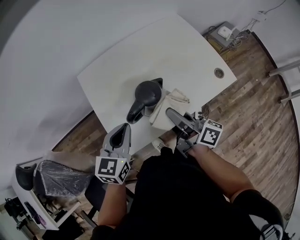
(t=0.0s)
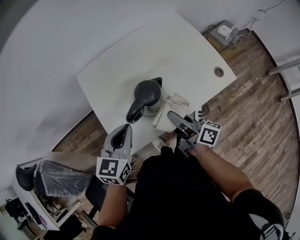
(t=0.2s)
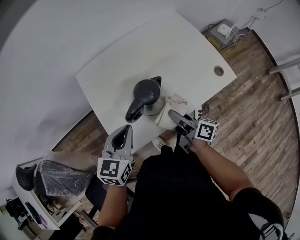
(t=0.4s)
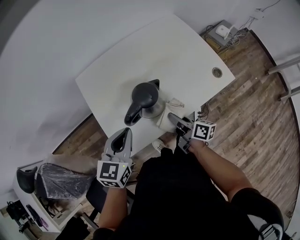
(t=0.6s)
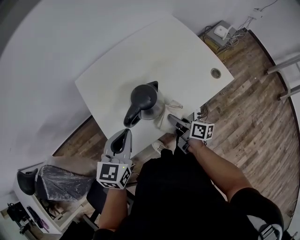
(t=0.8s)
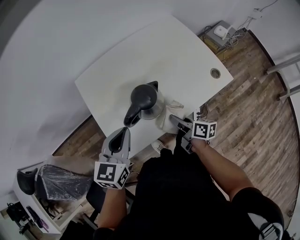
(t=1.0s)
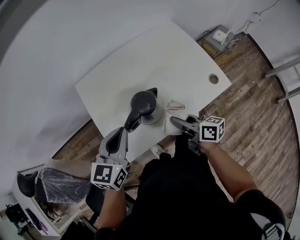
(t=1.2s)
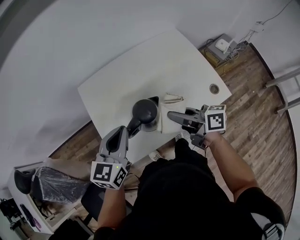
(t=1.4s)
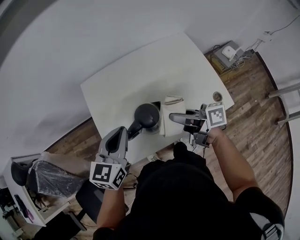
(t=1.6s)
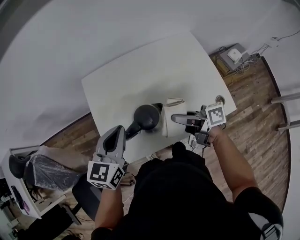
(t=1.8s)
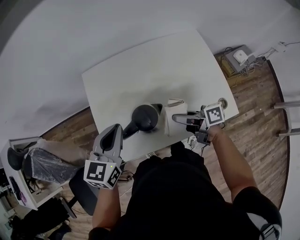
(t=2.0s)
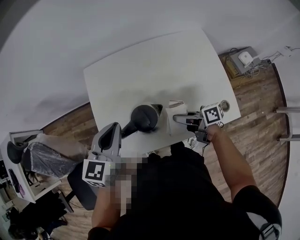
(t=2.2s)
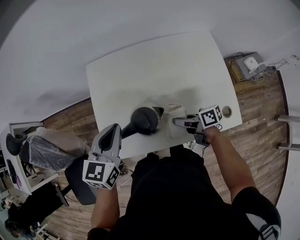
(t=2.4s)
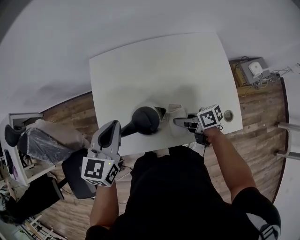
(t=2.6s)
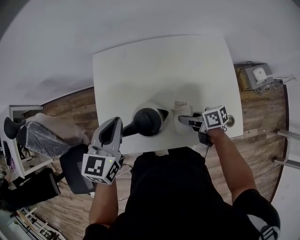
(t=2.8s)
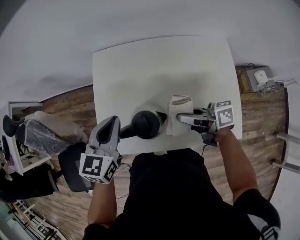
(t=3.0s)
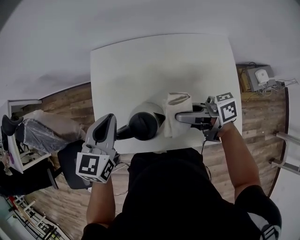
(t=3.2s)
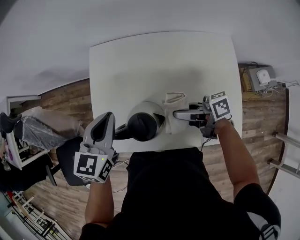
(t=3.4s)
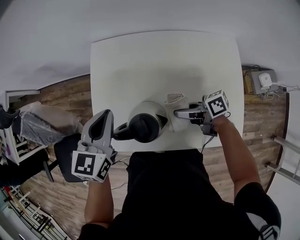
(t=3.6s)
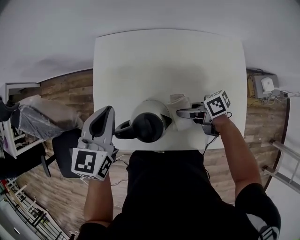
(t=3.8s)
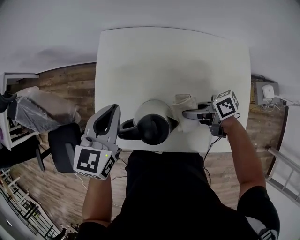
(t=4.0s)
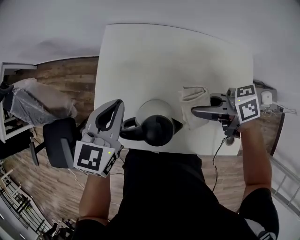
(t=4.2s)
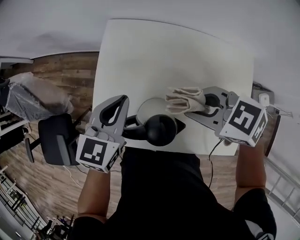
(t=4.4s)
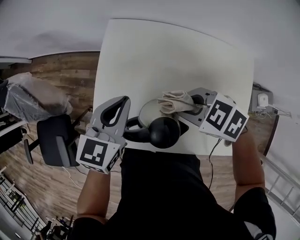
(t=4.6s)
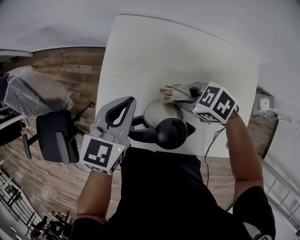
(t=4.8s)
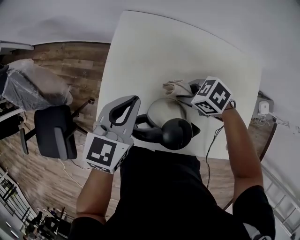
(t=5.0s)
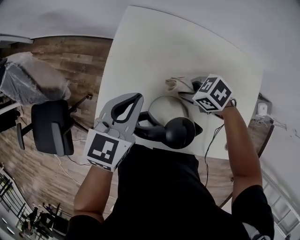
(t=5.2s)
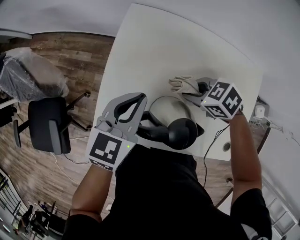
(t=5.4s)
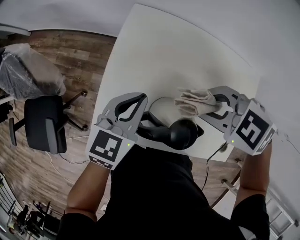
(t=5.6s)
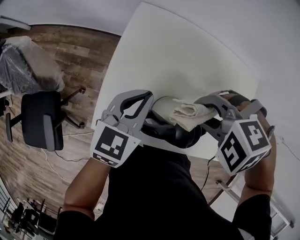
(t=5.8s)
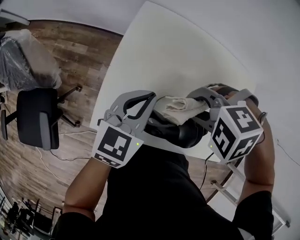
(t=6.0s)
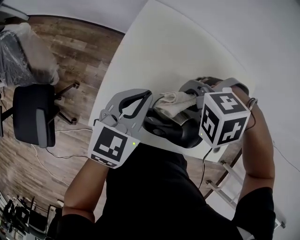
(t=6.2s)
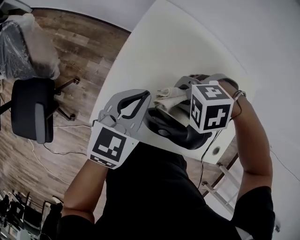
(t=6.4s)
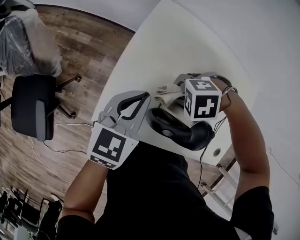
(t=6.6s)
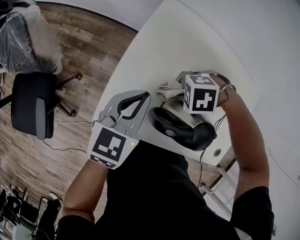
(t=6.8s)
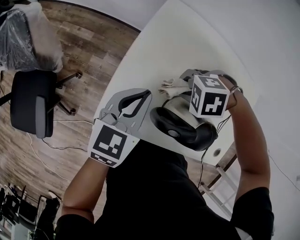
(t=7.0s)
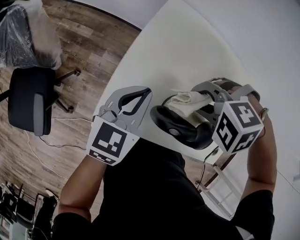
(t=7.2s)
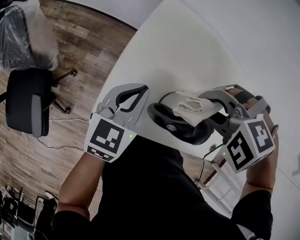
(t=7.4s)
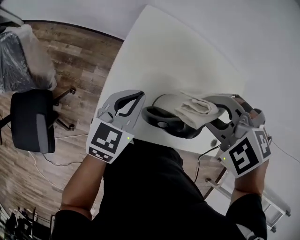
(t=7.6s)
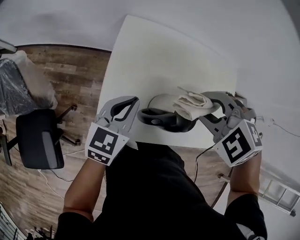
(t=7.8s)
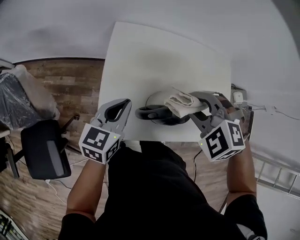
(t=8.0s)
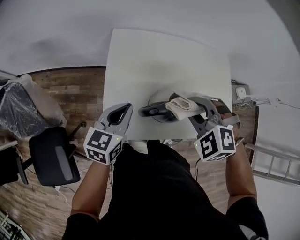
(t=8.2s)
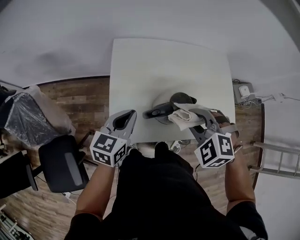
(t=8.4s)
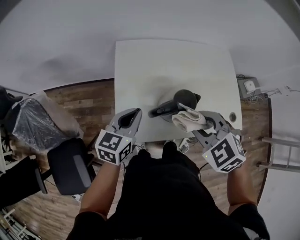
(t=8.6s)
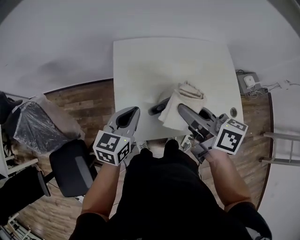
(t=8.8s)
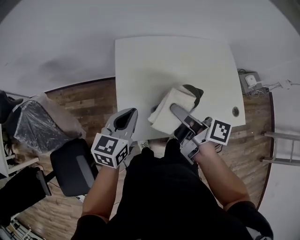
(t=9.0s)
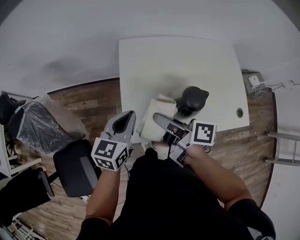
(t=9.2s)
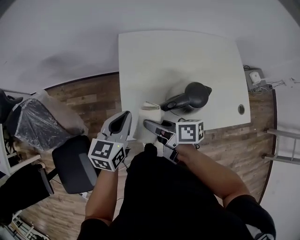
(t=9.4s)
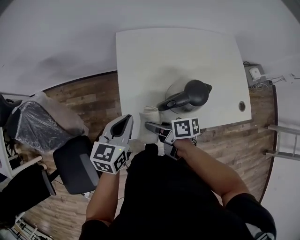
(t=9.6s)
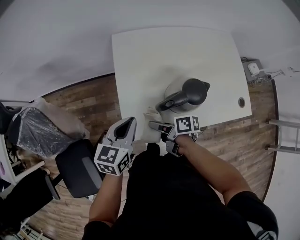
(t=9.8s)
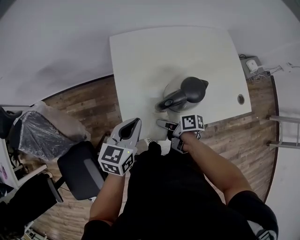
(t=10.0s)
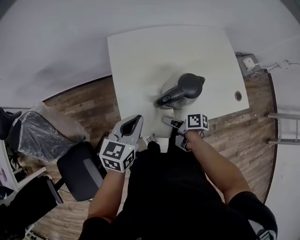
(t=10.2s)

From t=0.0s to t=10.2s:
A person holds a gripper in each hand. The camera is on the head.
From t=0.0s to t=1.4s: The left gripper shifts by about 5 cm. The right gripper goes downward and returns, roughly 15 cm each way, and swivels some 30 degrees.
From t=1.4s to t=3.0s: The right gripper swivels approximately 40 degrees, while the left gripper shifts by approximately 5 cm, and changes its angle by some 20 degrees.
From t=3.0s to t=4.4s: The left gripper moves approximately 5 cm, while the right gripper travels forward by some 10 cm, reaches roughly 10 cm downward, then returns, and points its fingers about 40 degrees further downward.
From t=4.4s to t=5.8s: The right gripper travels downward and back again, some 20 cm each way, and points its fingers roughly 30 degrees further downward.
From t=5.8s to t=7.2s: The right gripper travels downward and back again, some 15 cm each way; the left gripper shifts by approximately 10 cm.
From t=7.2s to t=8.8s: The right gripper heads upward, covering approximately 15 cm, and angles its fingers upward, by approximately 60 degrees. The left gripper moves upward, roughly 5 cm.
From t=8.8s to t=10.2s: The left gripper shifts by some 5 cm. Meanwhile the right gripper moves downward, some 30 cm, and rolls clockwise, seen from behind, by about 40 degrees.

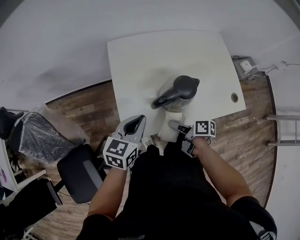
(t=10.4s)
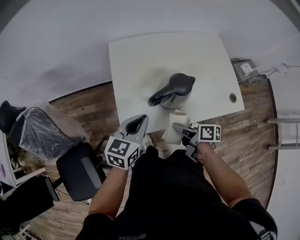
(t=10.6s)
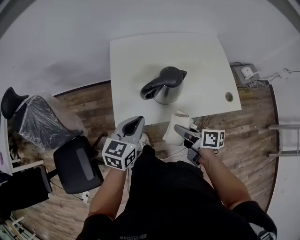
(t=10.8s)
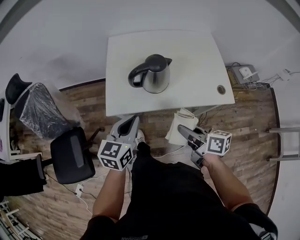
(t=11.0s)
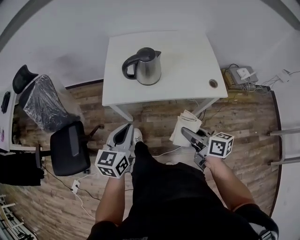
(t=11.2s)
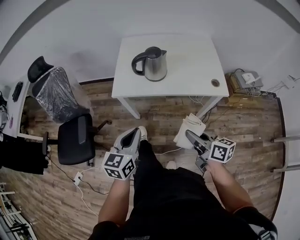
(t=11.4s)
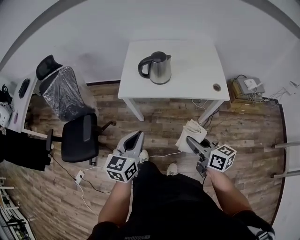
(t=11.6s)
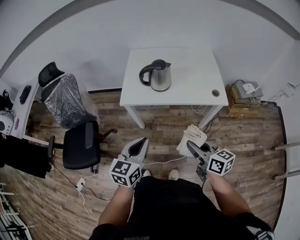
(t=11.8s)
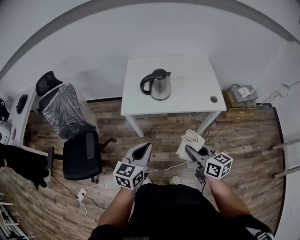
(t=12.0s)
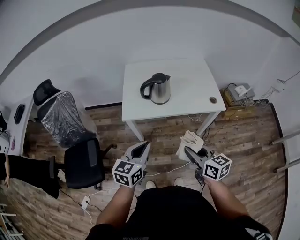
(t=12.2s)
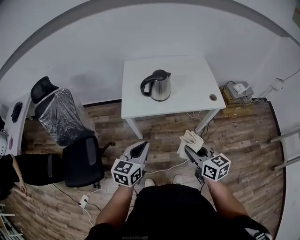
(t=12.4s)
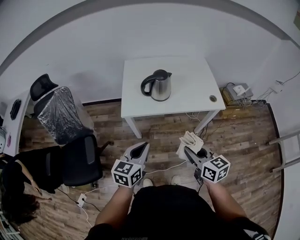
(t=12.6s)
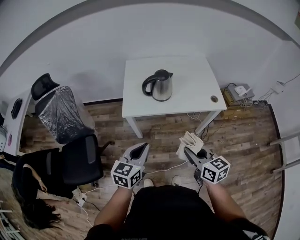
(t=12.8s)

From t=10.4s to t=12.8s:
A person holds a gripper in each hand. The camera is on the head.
From t=10.4s to t=11.6s: The right gripper shifts some 40 cm backward, upward and to the right, and twists approximately 50 degrees counterclockwise, seen from behind. The left gripper shifts some 35 cm backward, and rotates about 20 degrees.
From t=11.6s to t=12.8s: The left gripper travels to the left by about 5 cm; the right gripper goes about 10 cm to the left.

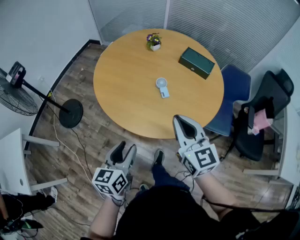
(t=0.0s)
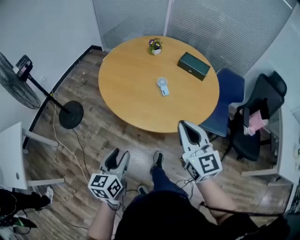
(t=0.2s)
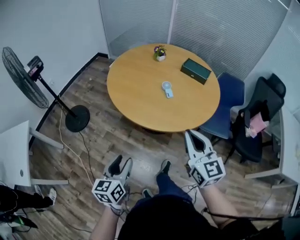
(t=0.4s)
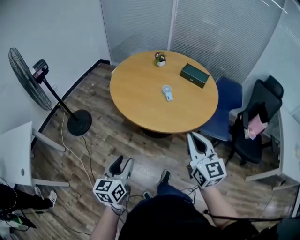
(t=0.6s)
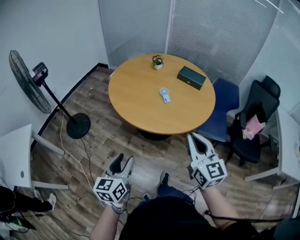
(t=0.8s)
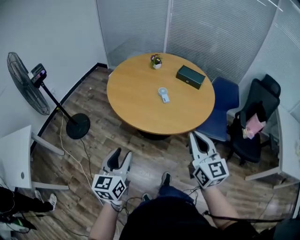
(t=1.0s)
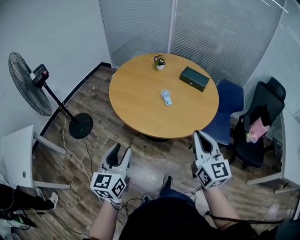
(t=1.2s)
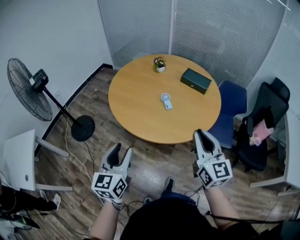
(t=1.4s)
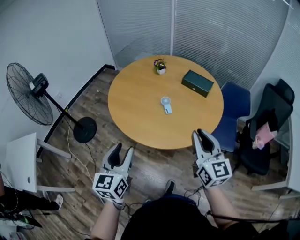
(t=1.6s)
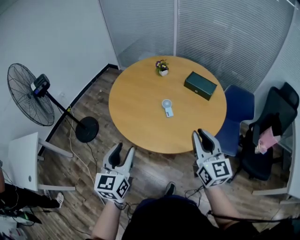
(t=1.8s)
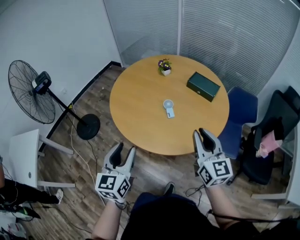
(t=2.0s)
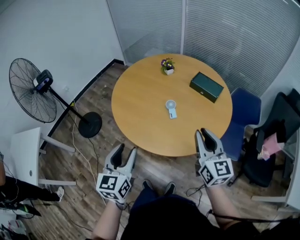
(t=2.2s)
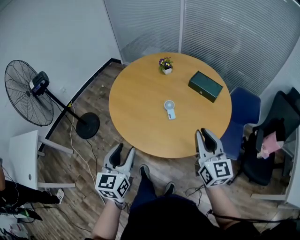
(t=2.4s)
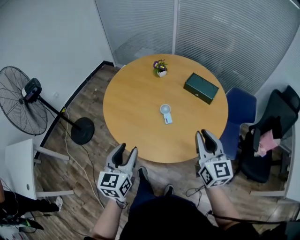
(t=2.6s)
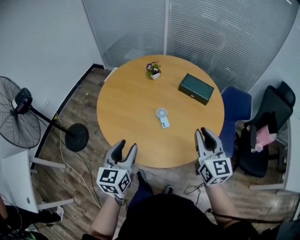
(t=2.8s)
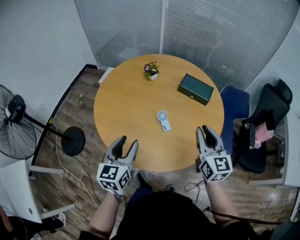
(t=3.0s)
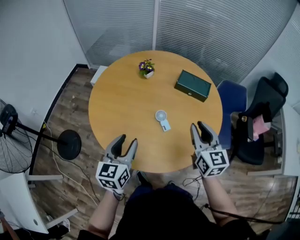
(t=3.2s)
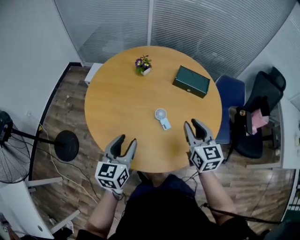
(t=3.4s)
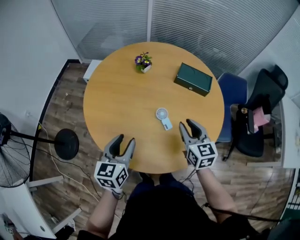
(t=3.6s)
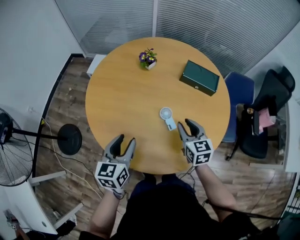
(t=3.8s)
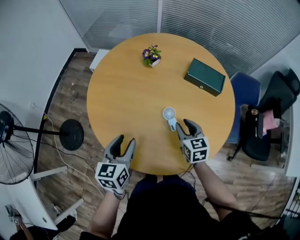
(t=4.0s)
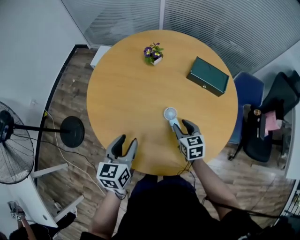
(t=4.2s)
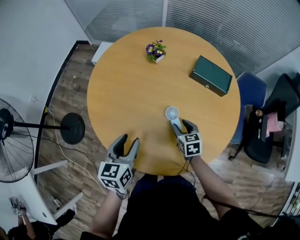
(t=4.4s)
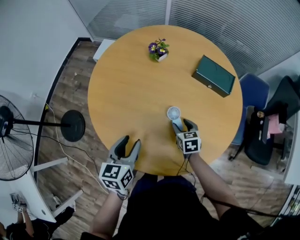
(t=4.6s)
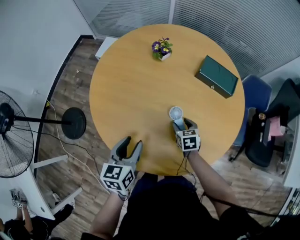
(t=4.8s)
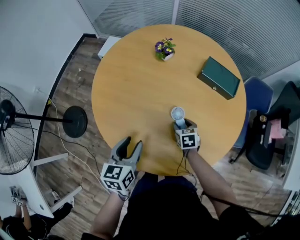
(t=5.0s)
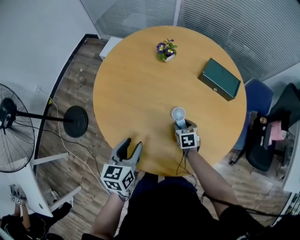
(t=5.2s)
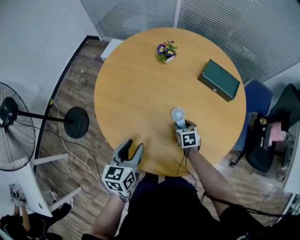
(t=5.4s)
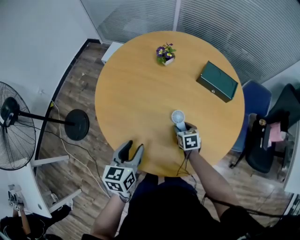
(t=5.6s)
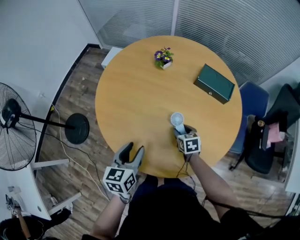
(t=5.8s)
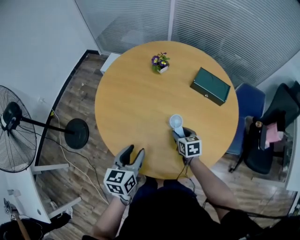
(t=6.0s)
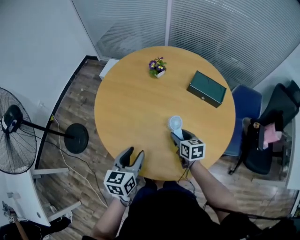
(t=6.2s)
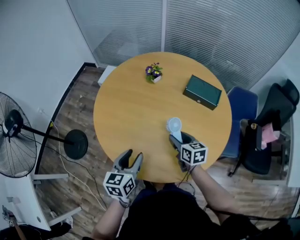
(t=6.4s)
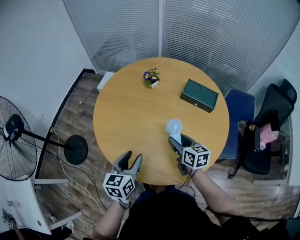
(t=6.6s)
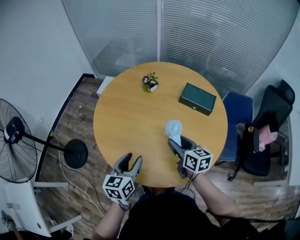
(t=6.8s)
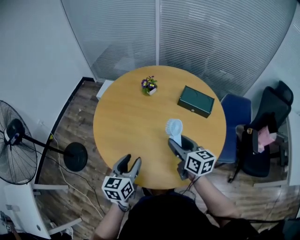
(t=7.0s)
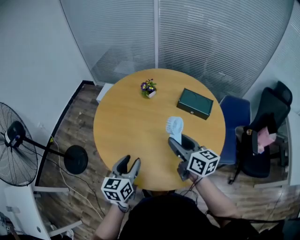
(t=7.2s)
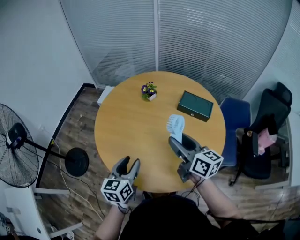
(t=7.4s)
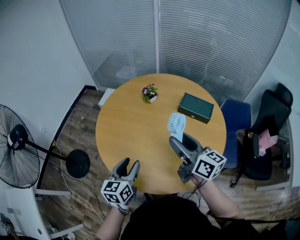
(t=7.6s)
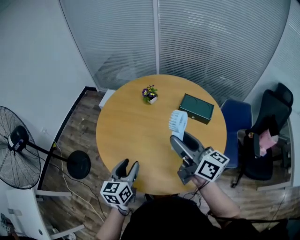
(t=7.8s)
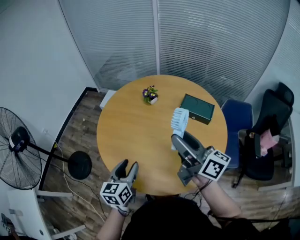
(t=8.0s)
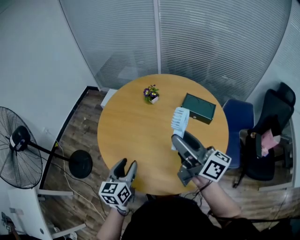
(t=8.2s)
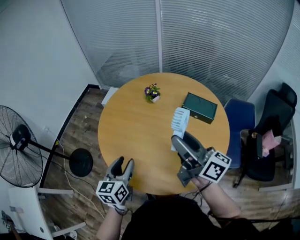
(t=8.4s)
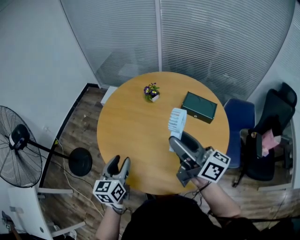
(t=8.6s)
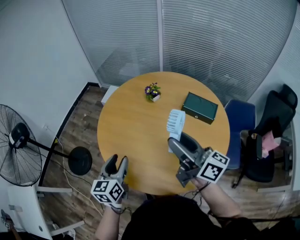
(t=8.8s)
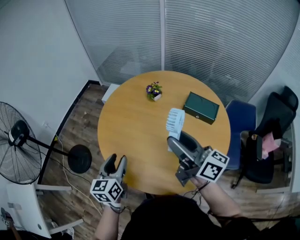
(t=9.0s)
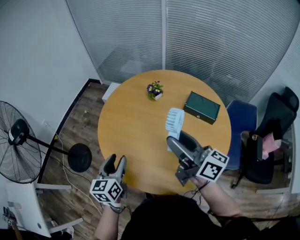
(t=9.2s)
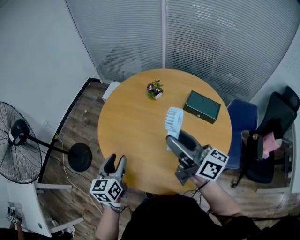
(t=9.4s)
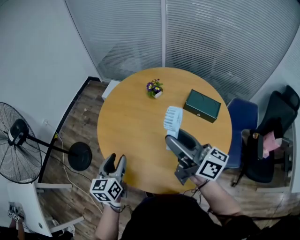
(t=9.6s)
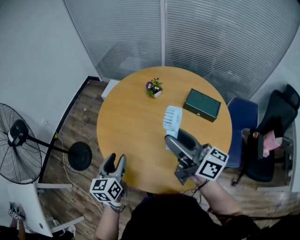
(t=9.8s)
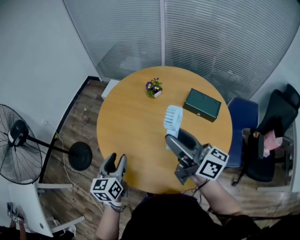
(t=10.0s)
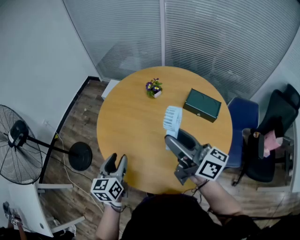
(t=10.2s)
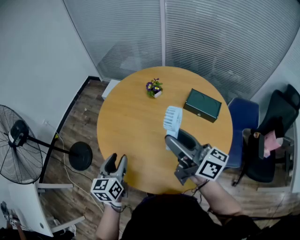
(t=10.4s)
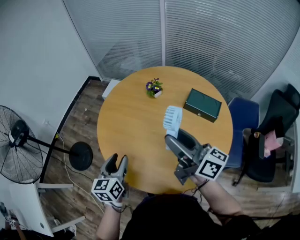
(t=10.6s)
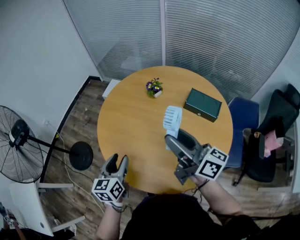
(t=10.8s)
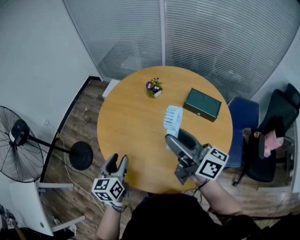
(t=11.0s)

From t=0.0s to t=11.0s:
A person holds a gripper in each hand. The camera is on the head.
From t=0.0s to t=1.6s: The left gripper heads upward, covering approximately 10 cm, and moves approximately 25 cm backward and comes back. Meanwhile the right gripper goes approximately 15 cm backward, to the right and upward.
From t=1.6s to t=3.2s: The two grippers go some 30 cm forward.
From t=3.2s to t=4.8s: The left gripper is displaced downward and forward by roughly 15 cm; the right gripper goes roughly 30 cm downward, angles its fingers downward, by about 40 degrees, and opens up.
From t=4.8s to t=6.2s: The right gripper heads upward, covering roughly 10 cm. Meanwhile the left gripper travels backward by roughly 5 cm.
From t=6.2s to t=7.8s: The left gripper is displaced upward by roughly 5 cm; the right gripper goes about 30 cm upward, and points its fingers some 40 degrees further upward.
From t=7.8s to t=9.4s: The left gripper is displaced to the left by approximately 5 cm.
From t=9.4s to t=11.0s: The grippers move only a little.
